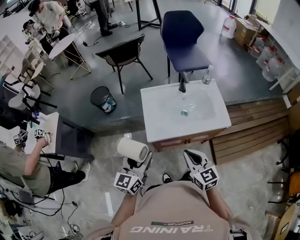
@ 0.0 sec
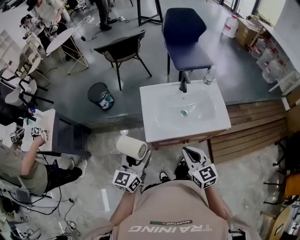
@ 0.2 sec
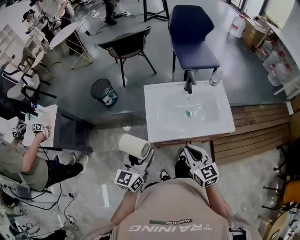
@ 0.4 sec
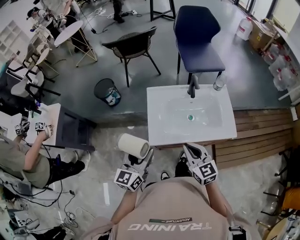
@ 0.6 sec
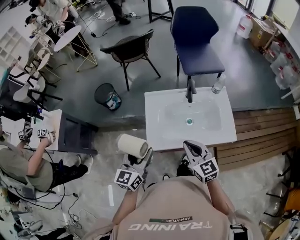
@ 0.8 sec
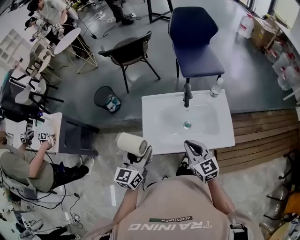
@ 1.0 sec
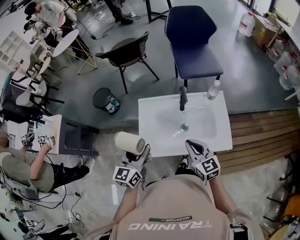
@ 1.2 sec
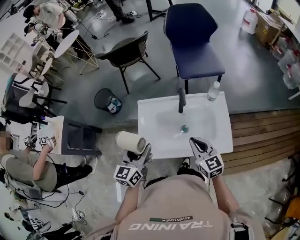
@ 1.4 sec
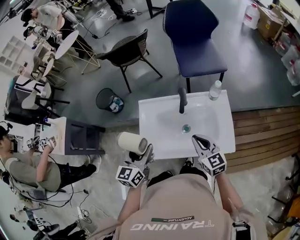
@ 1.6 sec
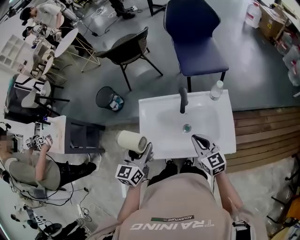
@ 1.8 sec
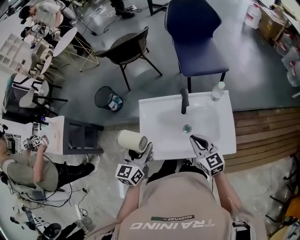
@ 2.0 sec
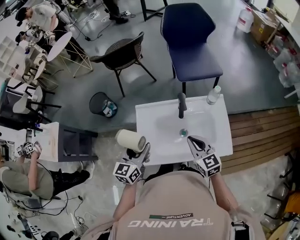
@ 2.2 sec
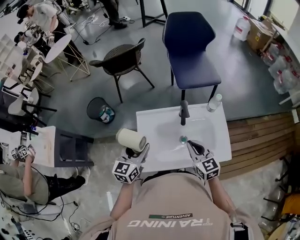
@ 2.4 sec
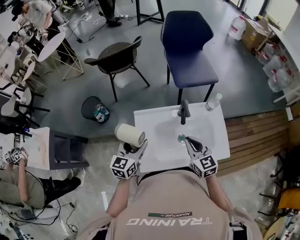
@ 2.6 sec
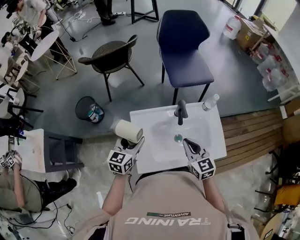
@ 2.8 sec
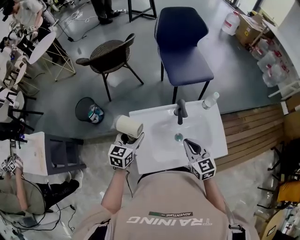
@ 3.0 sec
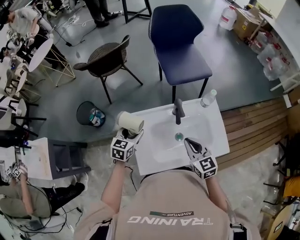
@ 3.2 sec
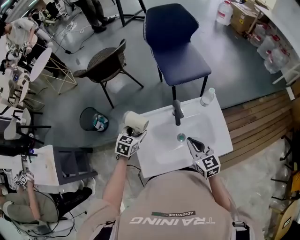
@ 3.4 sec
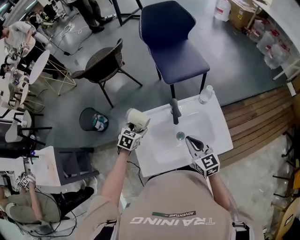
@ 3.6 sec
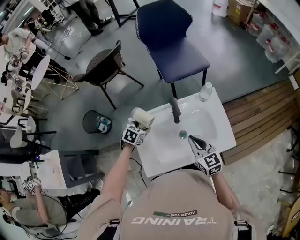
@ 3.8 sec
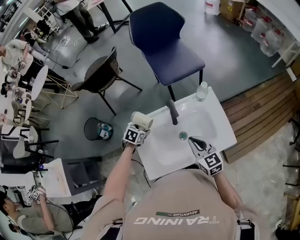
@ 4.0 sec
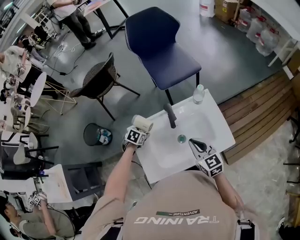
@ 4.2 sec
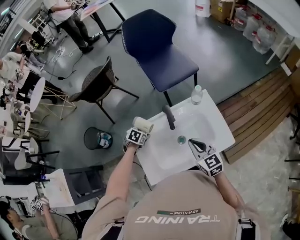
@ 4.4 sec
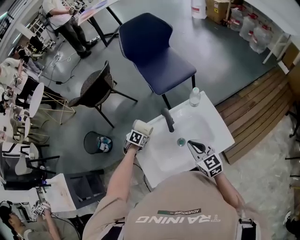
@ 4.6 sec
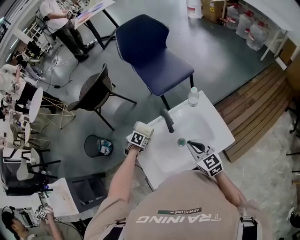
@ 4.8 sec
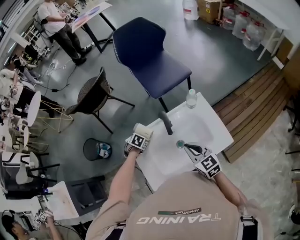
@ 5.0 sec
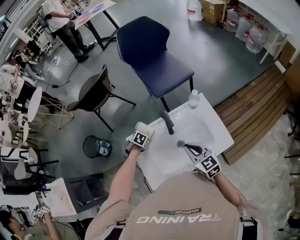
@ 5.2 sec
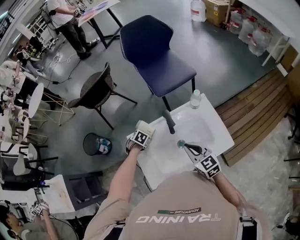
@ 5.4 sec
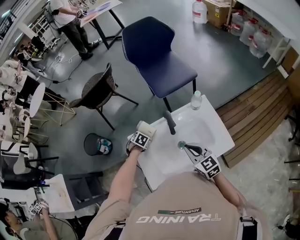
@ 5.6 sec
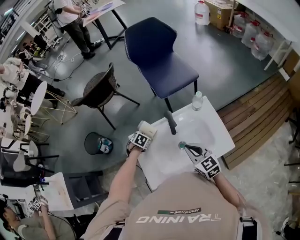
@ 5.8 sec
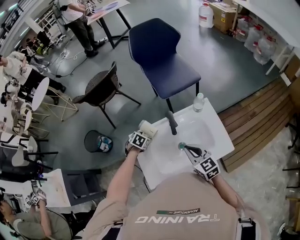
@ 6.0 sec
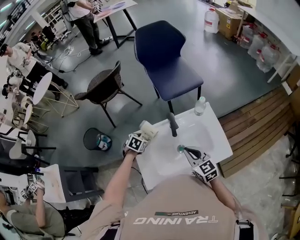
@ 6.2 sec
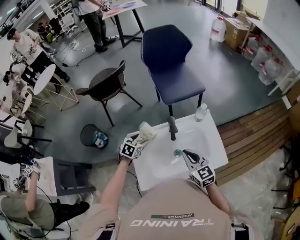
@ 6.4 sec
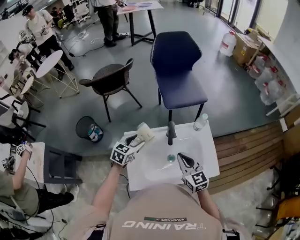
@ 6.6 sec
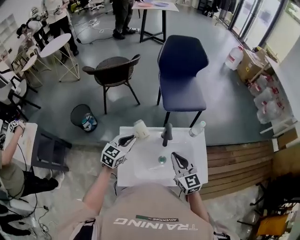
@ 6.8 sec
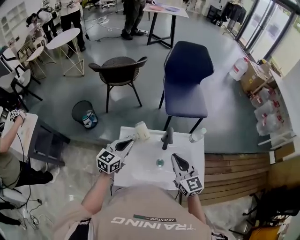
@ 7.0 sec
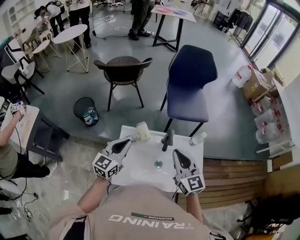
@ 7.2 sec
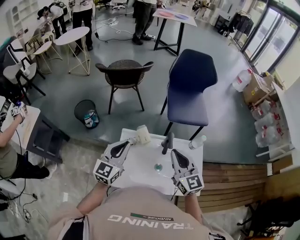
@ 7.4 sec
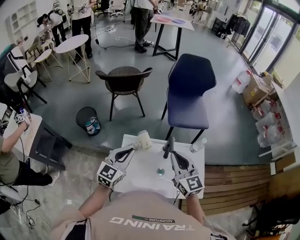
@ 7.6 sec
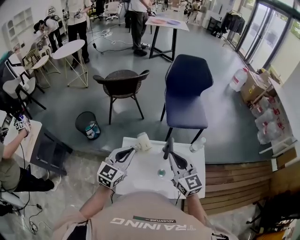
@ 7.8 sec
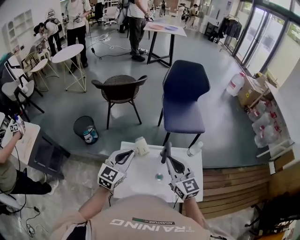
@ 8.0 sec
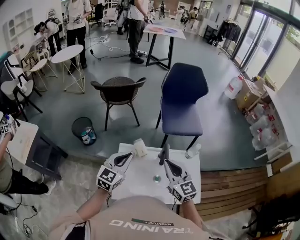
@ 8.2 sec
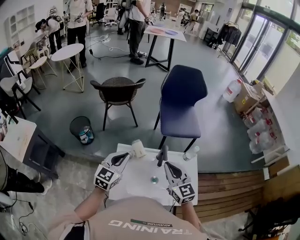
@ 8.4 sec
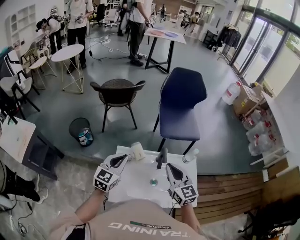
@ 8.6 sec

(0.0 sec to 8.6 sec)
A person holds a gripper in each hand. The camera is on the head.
0.0 sec - 1.4 sec: The grippers both shift forward and to the right by roughly 20 cm.
1.4 sec - 2.8 sec: The right gripper goes approximately 10 cm forward and to the left, while the left gripper goes roughly 15 cm forward and downward.
2.8 sec - 4.4 sec: The right gripper shifts approximately 5 cm to the right, while the left gripper goes approximately 25 cm downward and forward, and tips its fingers downward by about 50 degrees.
4.4 sec - 5.8 sec: The grippers make only small movements.
5.8 sec - 7.2 sec: The right gripper goes approximately 15 cm upward, and swivels roughly 20 degrees, while the left gripper is displaced upward by some 25 cm, tilts its fingers some 70 degrees upward, and closes.
7.2 sec - 8.6 sec: The grippers make only small movements.

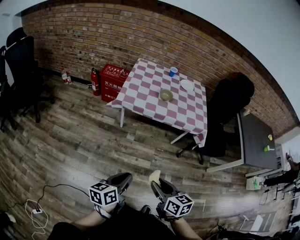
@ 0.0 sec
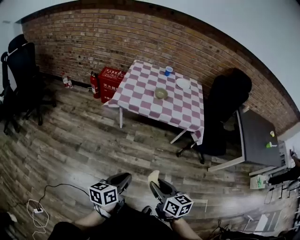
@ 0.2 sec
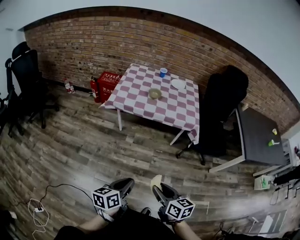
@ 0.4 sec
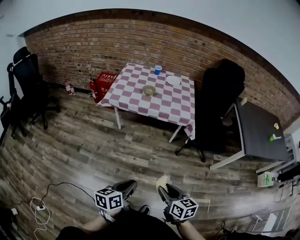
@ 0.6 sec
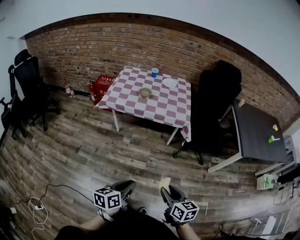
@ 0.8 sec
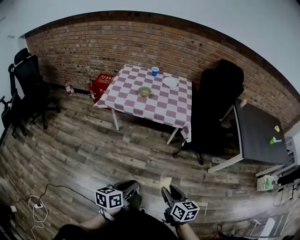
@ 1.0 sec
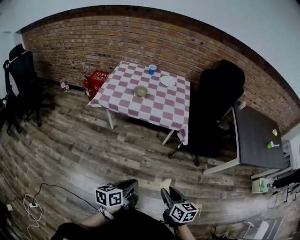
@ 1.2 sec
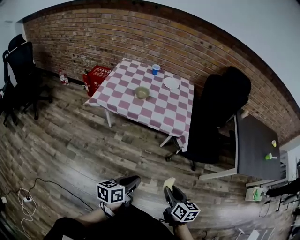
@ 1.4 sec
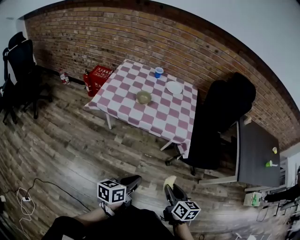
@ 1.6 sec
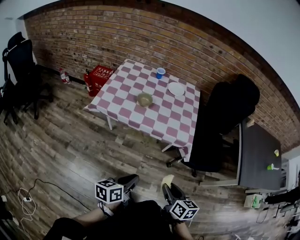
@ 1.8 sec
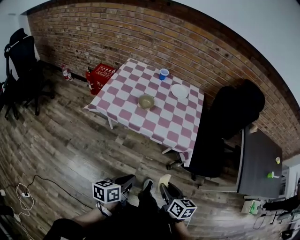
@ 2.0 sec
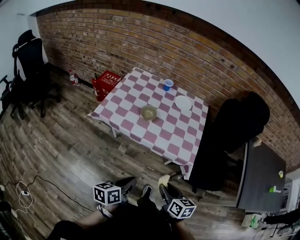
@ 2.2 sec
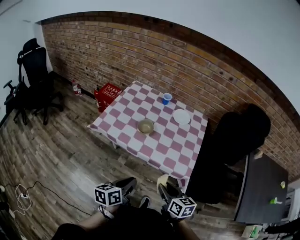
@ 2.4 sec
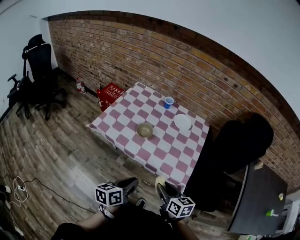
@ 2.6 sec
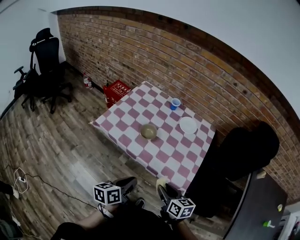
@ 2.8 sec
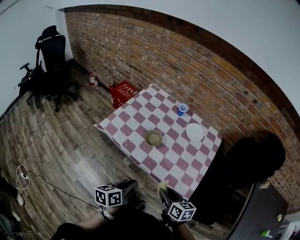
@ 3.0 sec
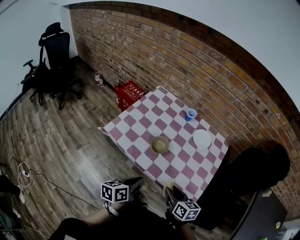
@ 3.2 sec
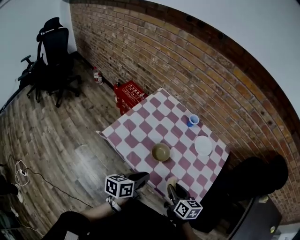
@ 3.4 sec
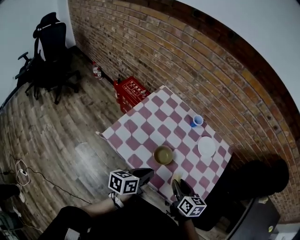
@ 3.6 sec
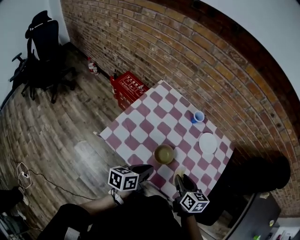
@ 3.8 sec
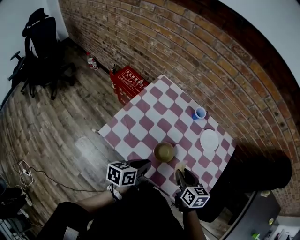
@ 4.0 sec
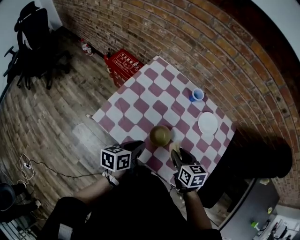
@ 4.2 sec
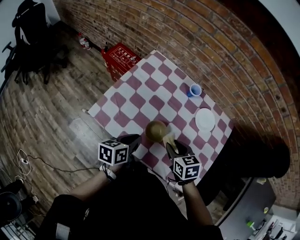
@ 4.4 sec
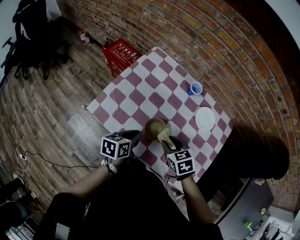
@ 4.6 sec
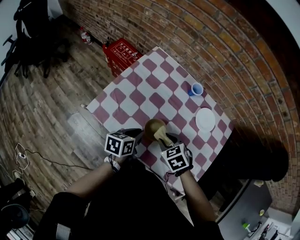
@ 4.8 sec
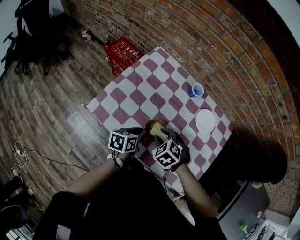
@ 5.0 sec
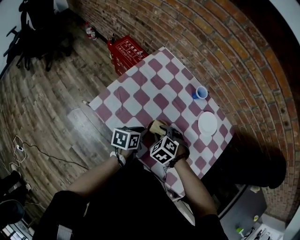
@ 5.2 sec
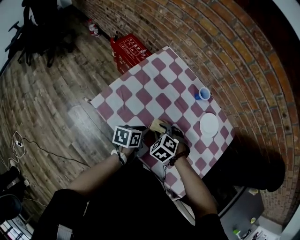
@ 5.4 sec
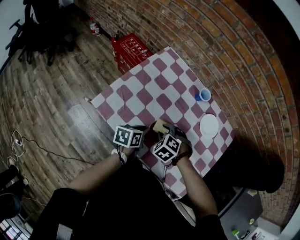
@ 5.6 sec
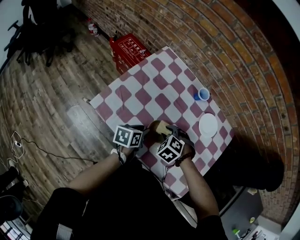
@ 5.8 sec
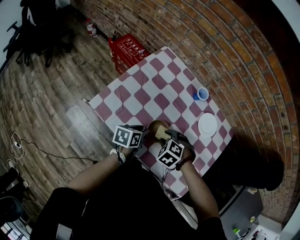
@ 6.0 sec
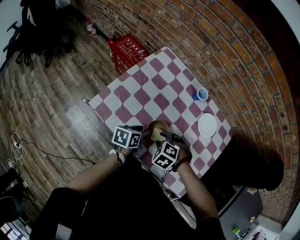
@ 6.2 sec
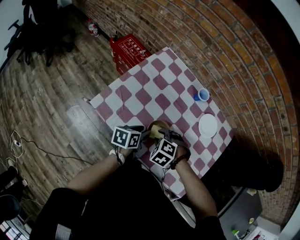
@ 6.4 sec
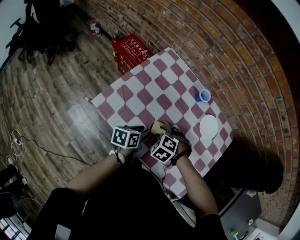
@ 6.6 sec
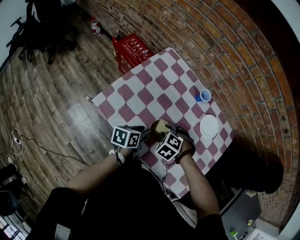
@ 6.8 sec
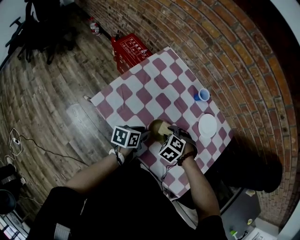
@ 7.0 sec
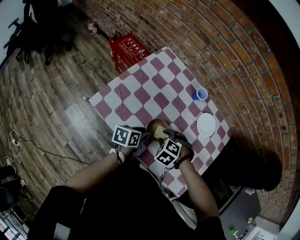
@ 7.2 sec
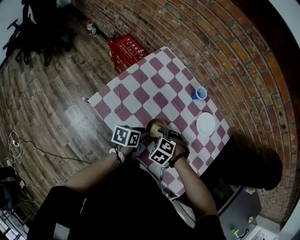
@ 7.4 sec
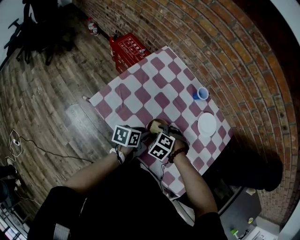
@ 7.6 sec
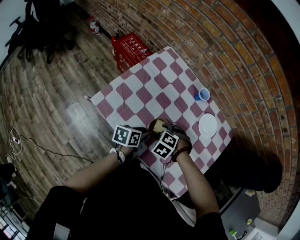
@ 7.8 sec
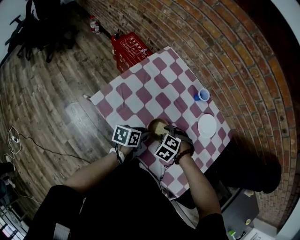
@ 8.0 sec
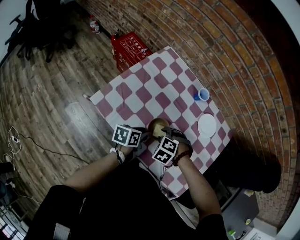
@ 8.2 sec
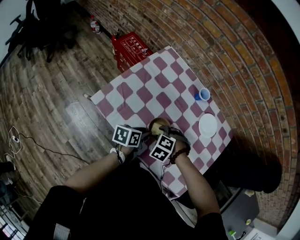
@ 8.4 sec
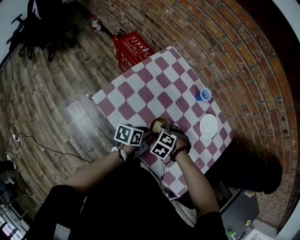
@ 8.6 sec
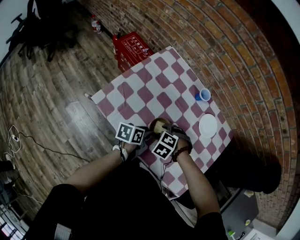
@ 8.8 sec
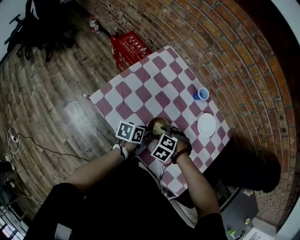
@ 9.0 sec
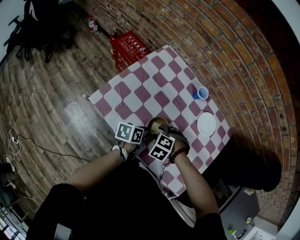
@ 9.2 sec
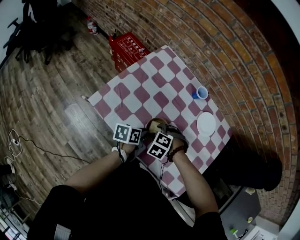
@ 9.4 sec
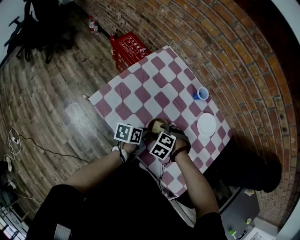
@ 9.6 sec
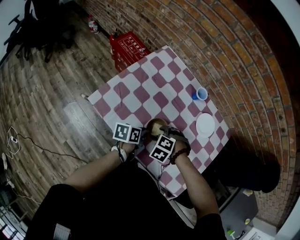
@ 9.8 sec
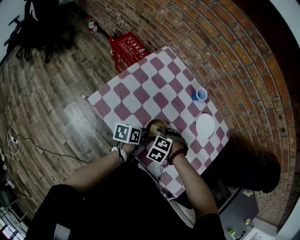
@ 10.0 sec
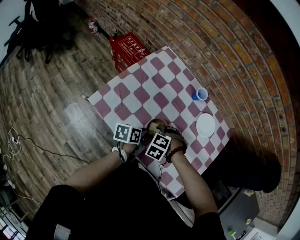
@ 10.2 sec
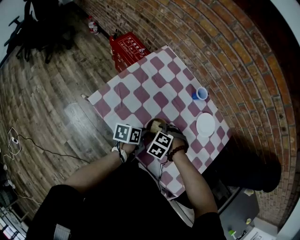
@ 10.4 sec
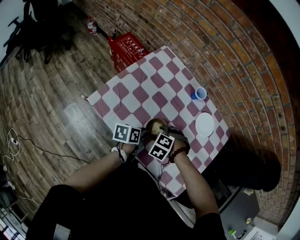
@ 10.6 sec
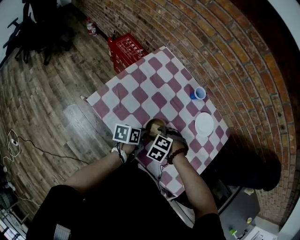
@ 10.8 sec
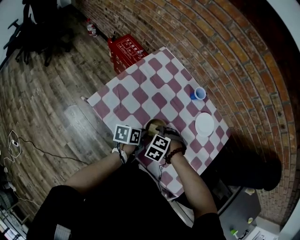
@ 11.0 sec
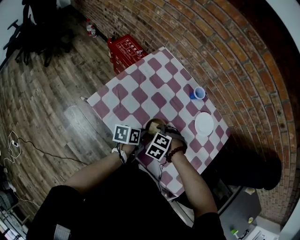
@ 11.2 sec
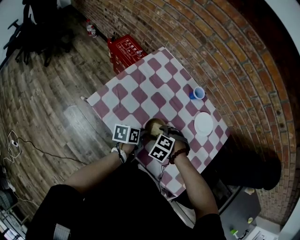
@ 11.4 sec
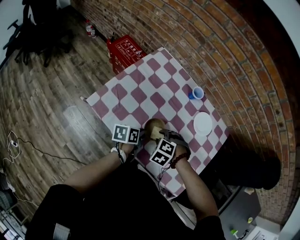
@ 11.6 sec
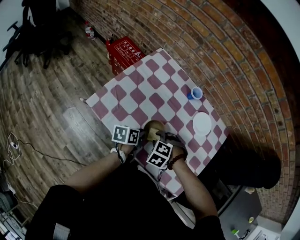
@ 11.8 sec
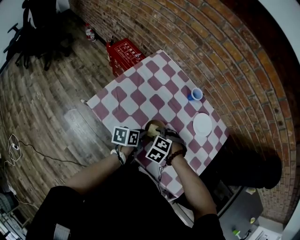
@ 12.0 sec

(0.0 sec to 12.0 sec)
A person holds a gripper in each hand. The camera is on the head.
0.0 sec - 1.6 sec: Both grippers travel together to the right, roughly 35 cm.
1.6 sec - 3.0 sec: The right gripper shifts by approximately 35 cm, and changes its angle by about 30 degrees. The left gripper shifts by approximately 30 cm, and turns by about 30 degrees.
3.0 sec - 4.4 sec: Both grippers move forward, about 30 cm. The right gripper rotates approximately 30 degrees.
4.4 sec - 6.0 sec: Both grippers travel together downward, roughly 10 cm. The right gripper rolls counterclockwise, seen from behind, by roughly 60 degrees.
6.0 sec - 12.0 sec: The grippers stay close to where they were, moving slightly.

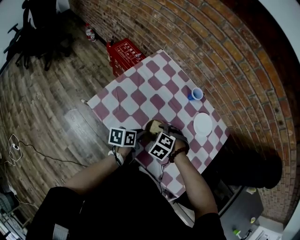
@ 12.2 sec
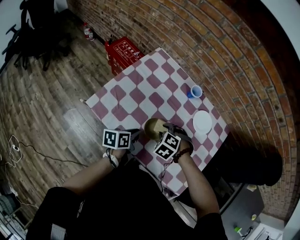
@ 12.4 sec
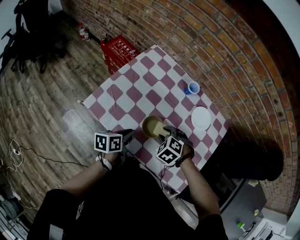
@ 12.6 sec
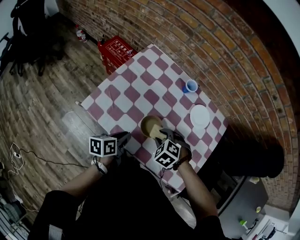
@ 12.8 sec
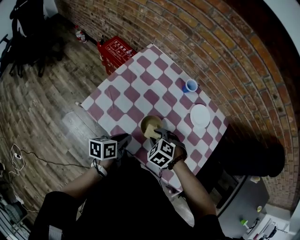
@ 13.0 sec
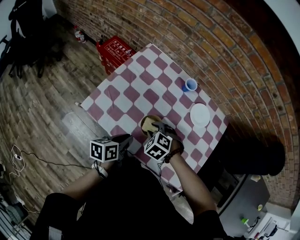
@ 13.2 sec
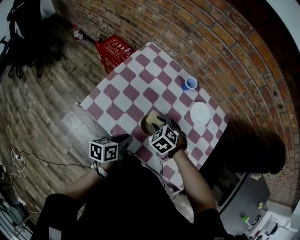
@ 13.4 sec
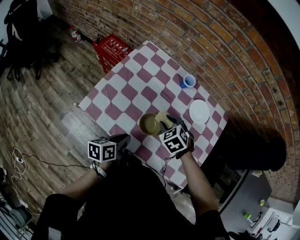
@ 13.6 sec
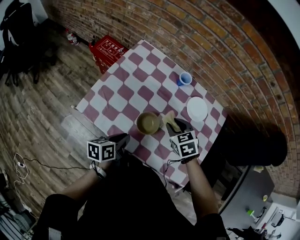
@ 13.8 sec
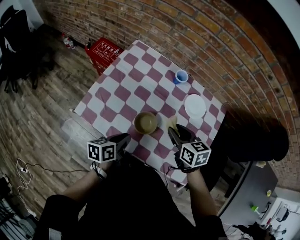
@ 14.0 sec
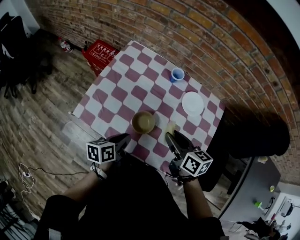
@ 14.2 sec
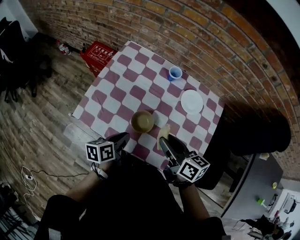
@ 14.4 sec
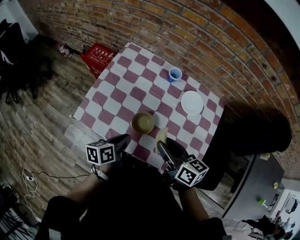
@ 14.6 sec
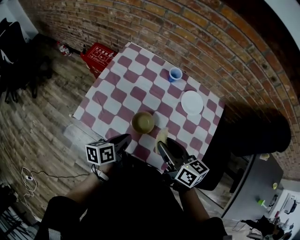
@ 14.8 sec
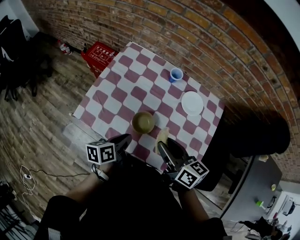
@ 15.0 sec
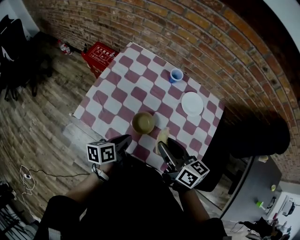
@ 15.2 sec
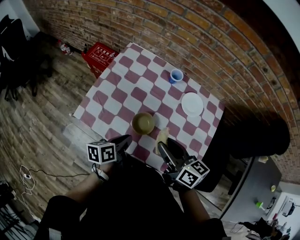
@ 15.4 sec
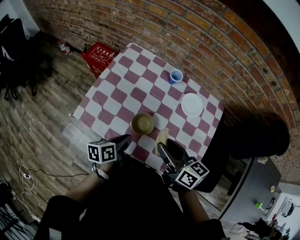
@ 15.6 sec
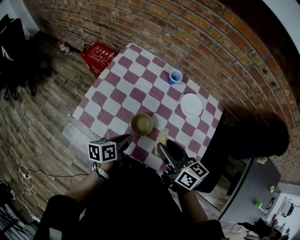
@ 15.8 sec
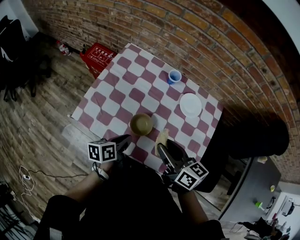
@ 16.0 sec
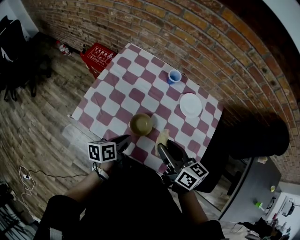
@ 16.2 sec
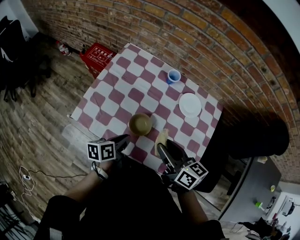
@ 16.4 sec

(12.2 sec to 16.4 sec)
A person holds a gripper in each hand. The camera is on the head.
12.2 sec - 13.6 sec: The left gripper travels backward by some 5 cm, while the right gripper shifts by roughly 5 cm, and rotates about 30 degrees.
13.6 sec - 15.0 sec: The right gripper shifts roughly 15 cm upward and backward, and angles its fingers upward, by roughly 50 degrees.
15.0 sec - 16.4 sec: The grippers stay close to where they were, moving slightly.
